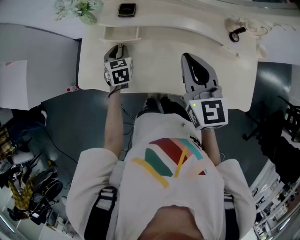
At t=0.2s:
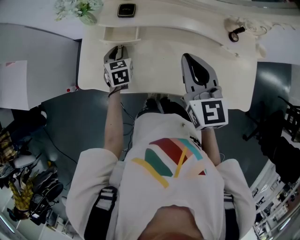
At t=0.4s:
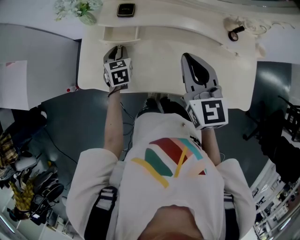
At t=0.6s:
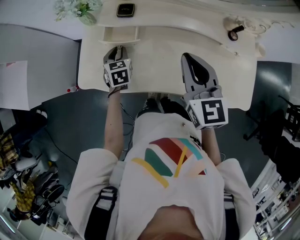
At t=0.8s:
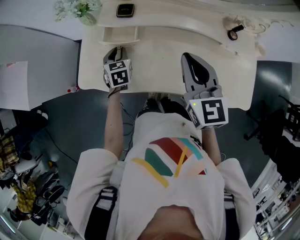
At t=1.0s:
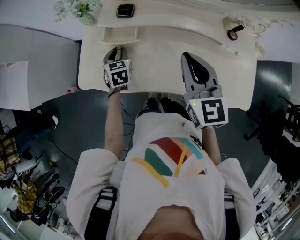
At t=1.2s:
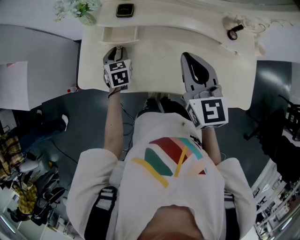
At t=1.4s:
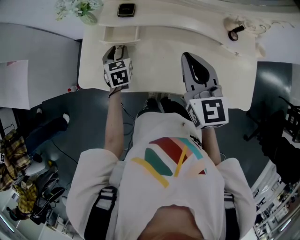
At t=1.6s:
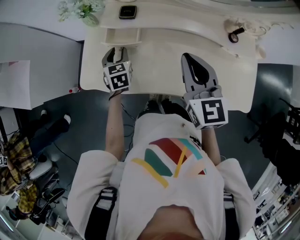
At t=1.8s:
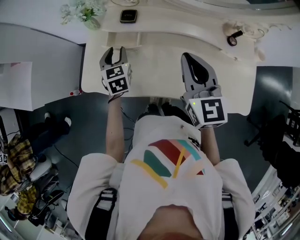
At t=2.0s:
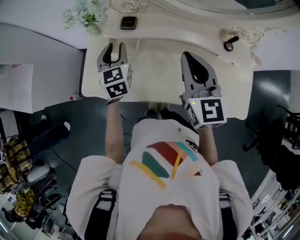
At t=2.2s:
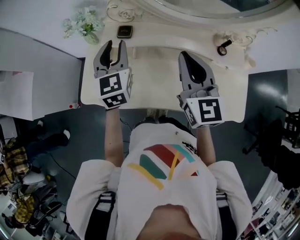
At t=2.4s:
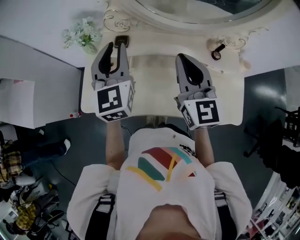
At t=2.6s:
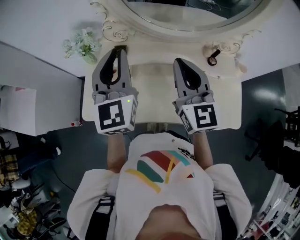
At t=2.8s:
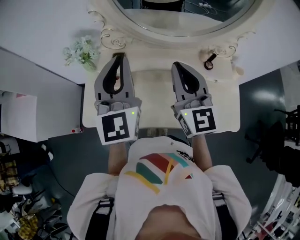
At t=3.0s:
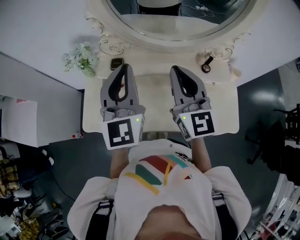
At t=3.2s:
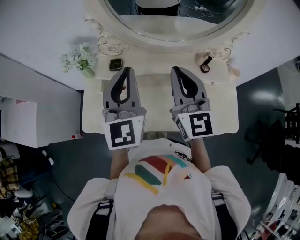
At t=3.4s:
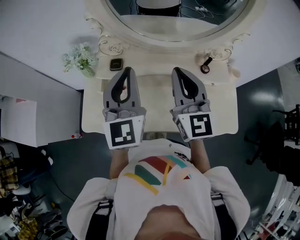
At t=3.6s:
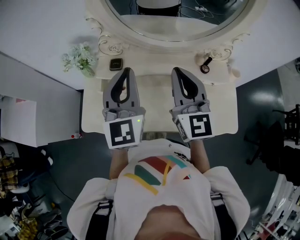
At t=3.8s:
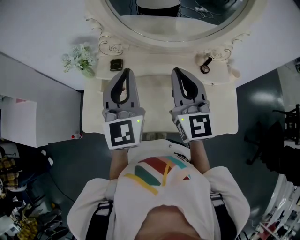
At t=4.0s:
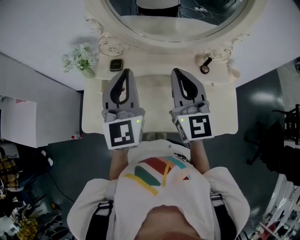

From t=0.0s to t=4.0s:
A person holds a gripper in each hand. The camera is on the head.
From t=0.0s to t=1.4s: The grippers make only small movements.
From t=1.4s to t=2.6s: The right gripper goes approximately 10 cm upward, while the left gripper goes about 35 cm upward, and points its fingers about 40 degrees further upward.
From t=2.6s to t=4.0s: The grippers stay close to where they were, moving slightly.

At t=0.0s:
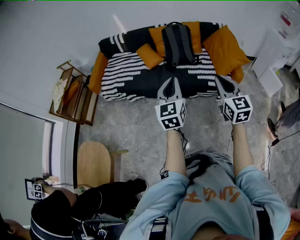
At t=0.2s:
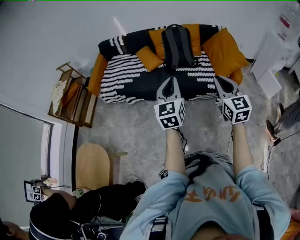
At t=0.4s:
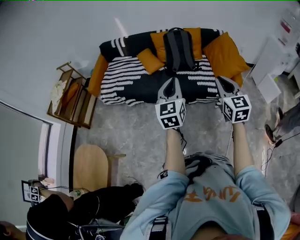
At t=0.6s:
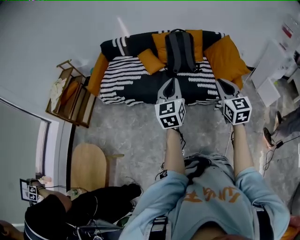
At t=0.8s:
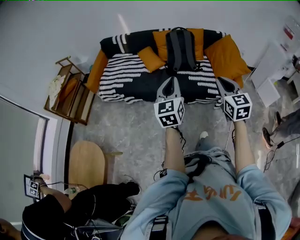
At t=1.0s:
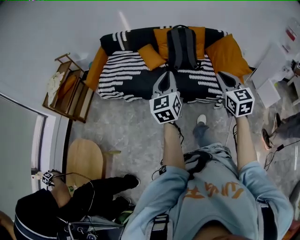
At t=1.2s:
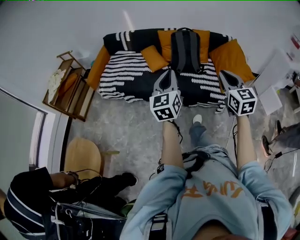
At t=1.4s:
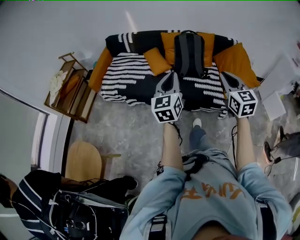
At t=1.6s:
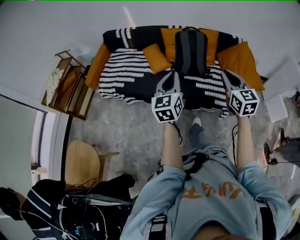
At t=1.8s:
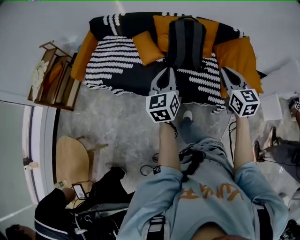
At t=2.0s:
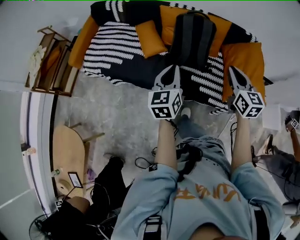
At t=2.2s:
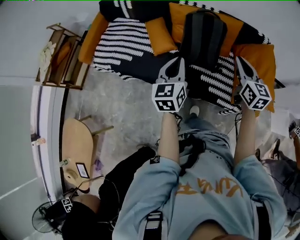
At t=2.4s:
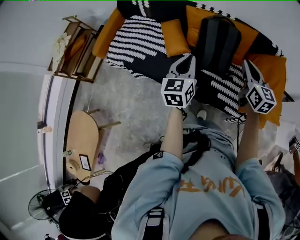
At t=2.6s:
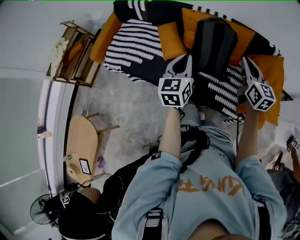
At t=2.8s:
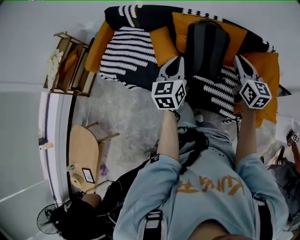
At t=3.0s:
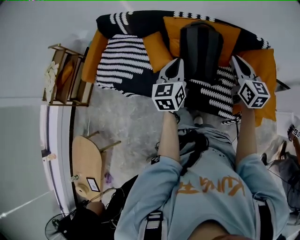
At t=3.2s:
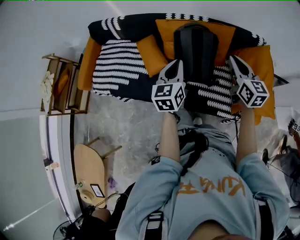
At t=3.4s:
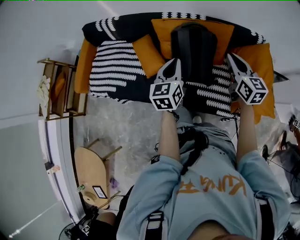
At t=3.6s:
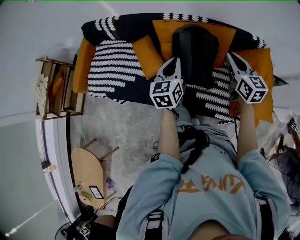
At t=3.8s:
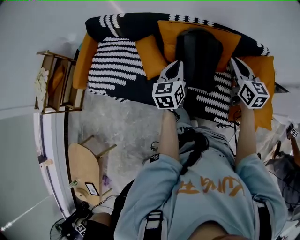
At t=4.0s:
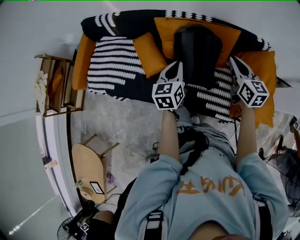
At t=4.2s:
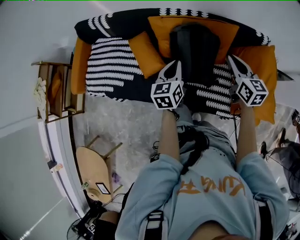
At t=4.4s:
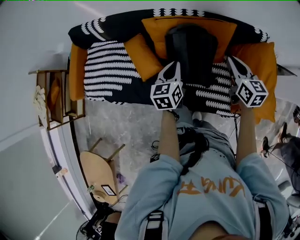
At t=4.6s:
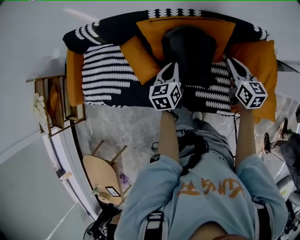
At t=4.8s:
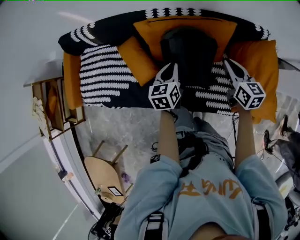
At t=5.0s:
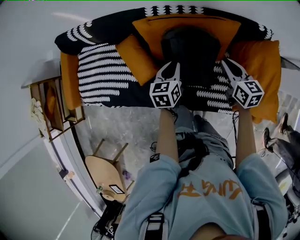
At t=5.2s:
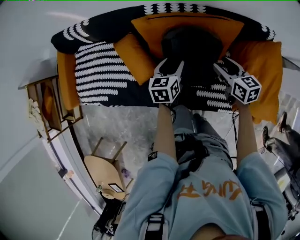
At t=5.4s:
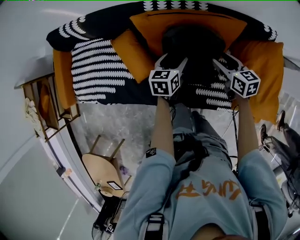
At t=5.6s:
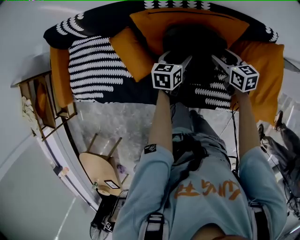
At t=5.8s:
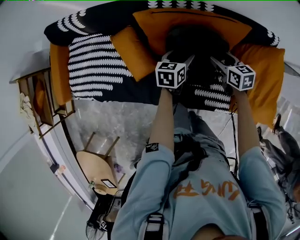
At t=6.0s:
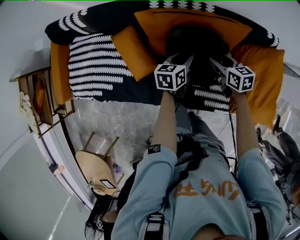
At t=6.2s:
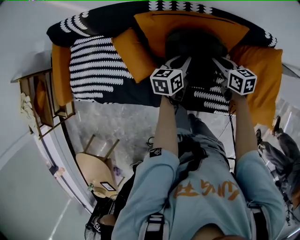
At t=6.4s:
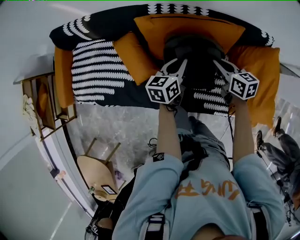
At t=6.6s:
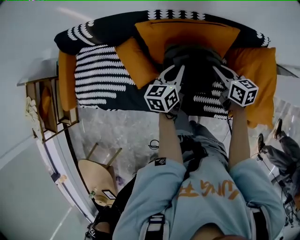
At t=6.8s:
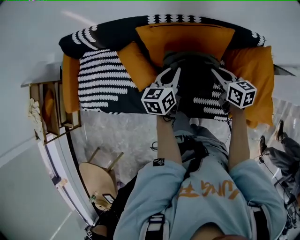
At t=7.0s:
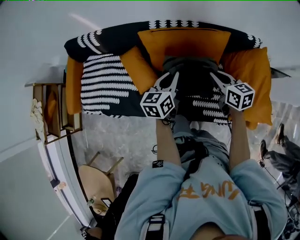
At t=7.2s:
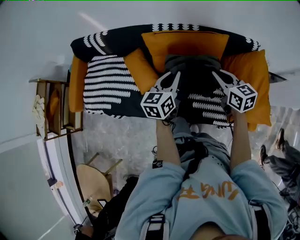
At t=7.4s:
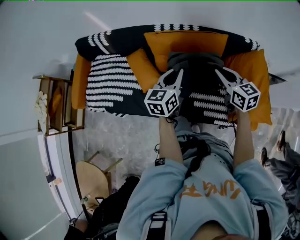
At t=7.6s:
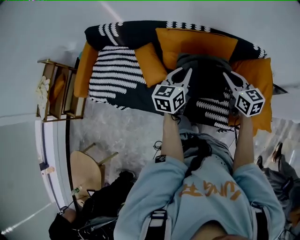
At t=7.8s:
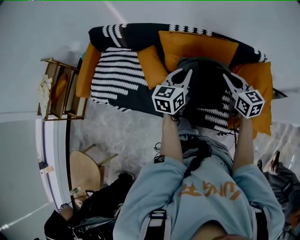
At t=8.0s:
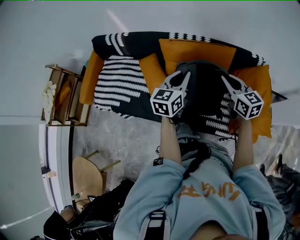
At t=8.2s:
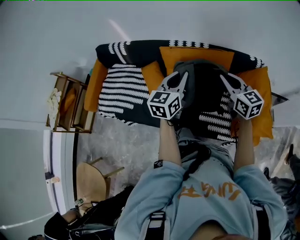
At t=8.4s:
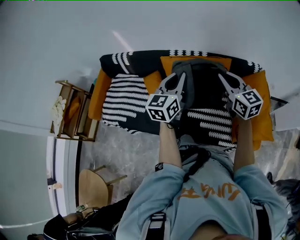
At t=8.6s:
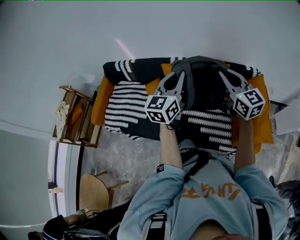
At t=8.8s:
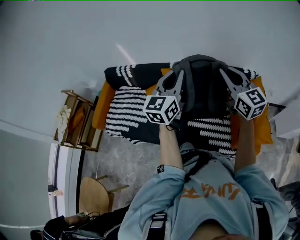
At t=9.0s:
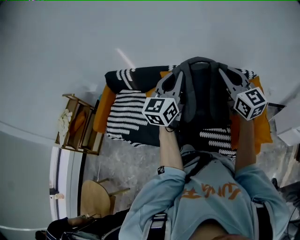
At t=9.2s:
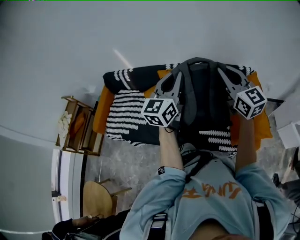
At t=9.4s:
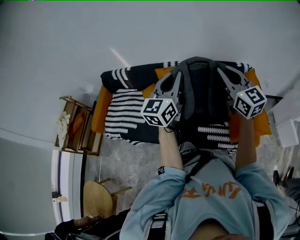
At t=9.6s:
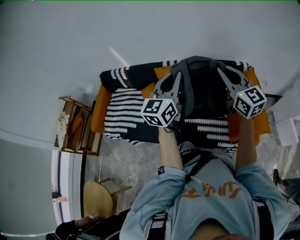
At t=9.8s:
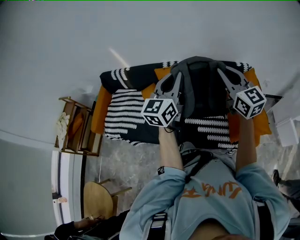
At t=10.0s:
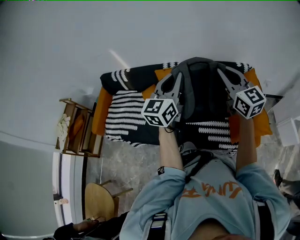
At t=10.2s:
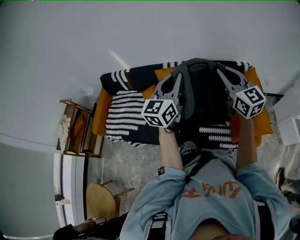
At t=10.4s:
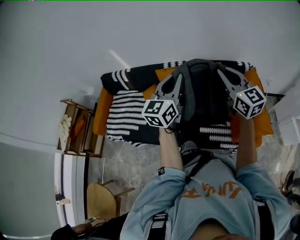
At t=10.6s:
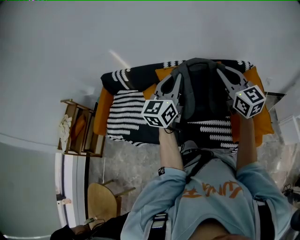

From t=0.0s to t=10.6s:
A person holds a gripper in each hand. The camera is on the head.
From t=0.0s to t=1.6s: Both grippers move forward, about 20 cm.
From t=1.6s to t=3.0s: Both grippers move forward, approximately 30 cm.
From t=3.0s to t=4.6s: The grippers both shift forward and downward by some 20 cm. The left gripper changes its angle by some 20 degrees.
From t=4.6s to t=6.0s: The left gripper shifts about 15 cm downward and forward, swivels about 20 degrees, and opens, while the right gripper heads downward, to the left and forward, covering roughly 20 cm, rotates roughly 20 degrees, and opens.
From t=6.0s to t=7.6s: Both grippers move upward and backward, roughly 25 cm. The left gripper changes its angle by some 30 degrees. The right gripper swivels about 20 degrees, and closes its fingers.
From t=7.6s to t=9.0s: The two grippers go roughly 25 cm upward. The left gripper turns by approximately 30 degrees; the right gripper turns by roughly 30 degrees.
From t=9.0s to t=10.6s: The grippers stay close to where they were, moving slightly.

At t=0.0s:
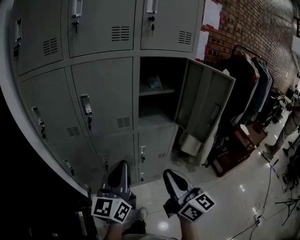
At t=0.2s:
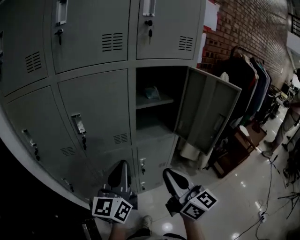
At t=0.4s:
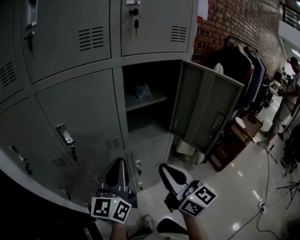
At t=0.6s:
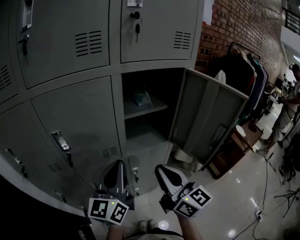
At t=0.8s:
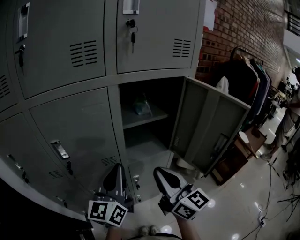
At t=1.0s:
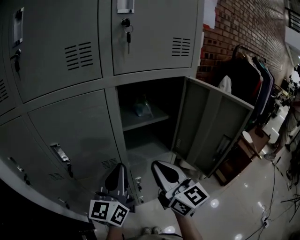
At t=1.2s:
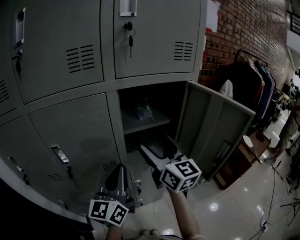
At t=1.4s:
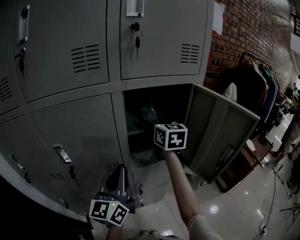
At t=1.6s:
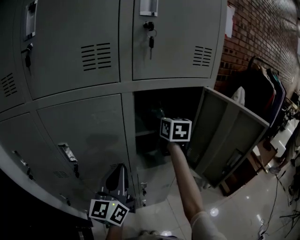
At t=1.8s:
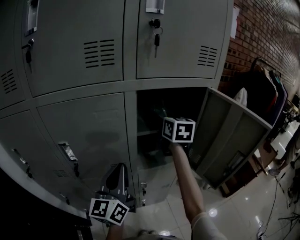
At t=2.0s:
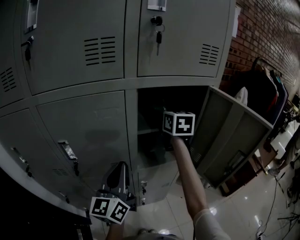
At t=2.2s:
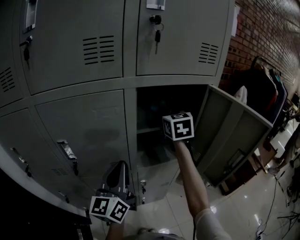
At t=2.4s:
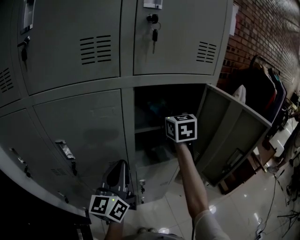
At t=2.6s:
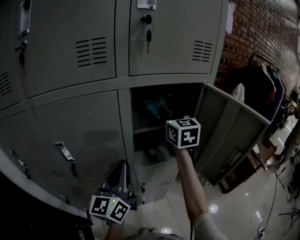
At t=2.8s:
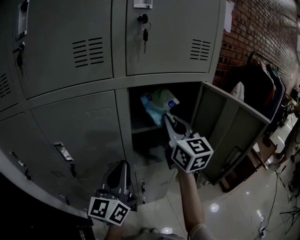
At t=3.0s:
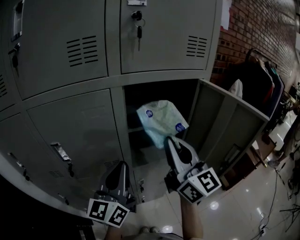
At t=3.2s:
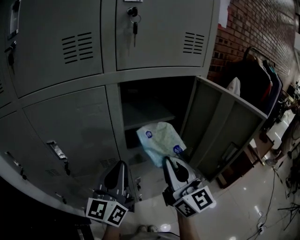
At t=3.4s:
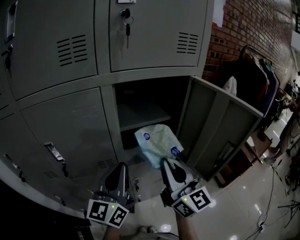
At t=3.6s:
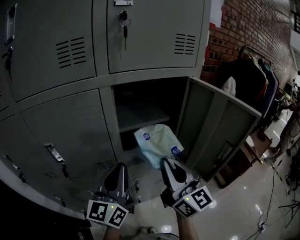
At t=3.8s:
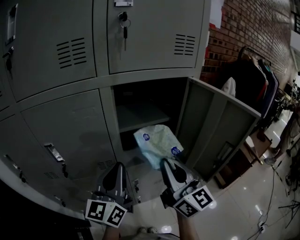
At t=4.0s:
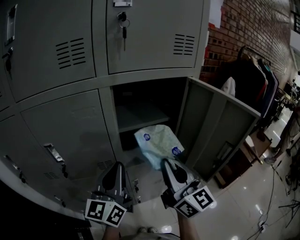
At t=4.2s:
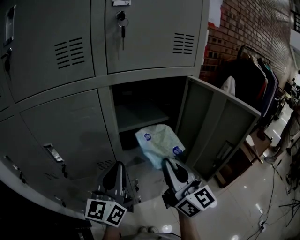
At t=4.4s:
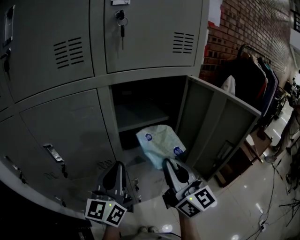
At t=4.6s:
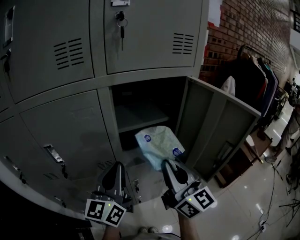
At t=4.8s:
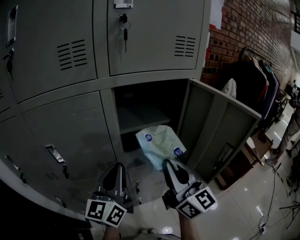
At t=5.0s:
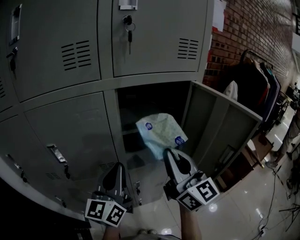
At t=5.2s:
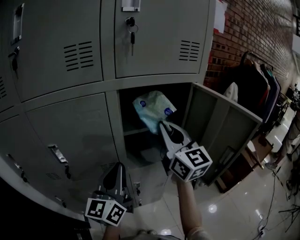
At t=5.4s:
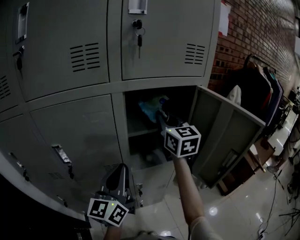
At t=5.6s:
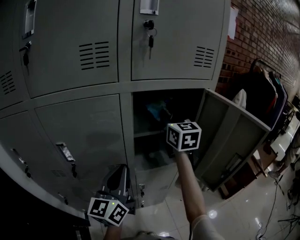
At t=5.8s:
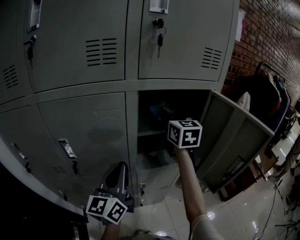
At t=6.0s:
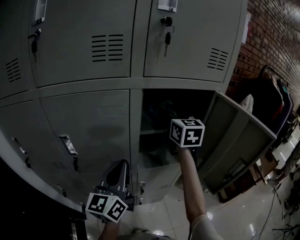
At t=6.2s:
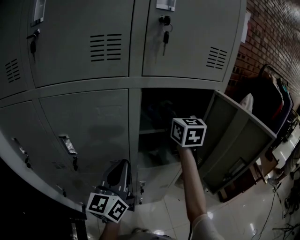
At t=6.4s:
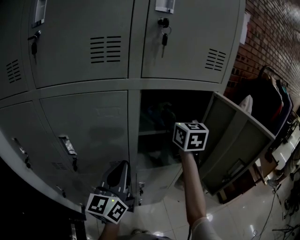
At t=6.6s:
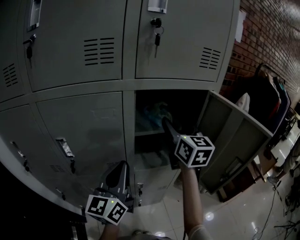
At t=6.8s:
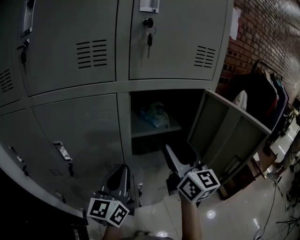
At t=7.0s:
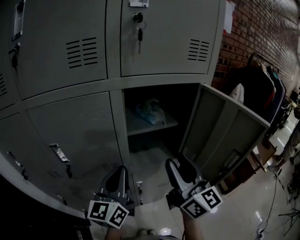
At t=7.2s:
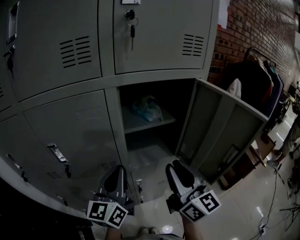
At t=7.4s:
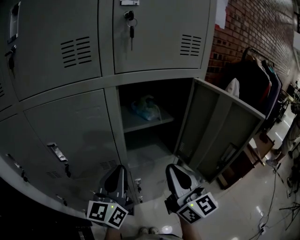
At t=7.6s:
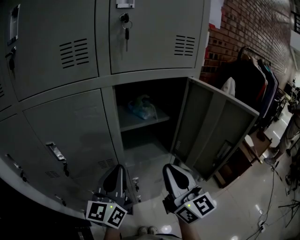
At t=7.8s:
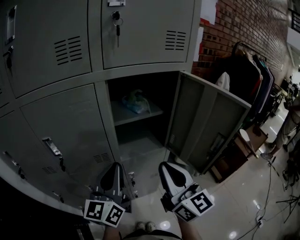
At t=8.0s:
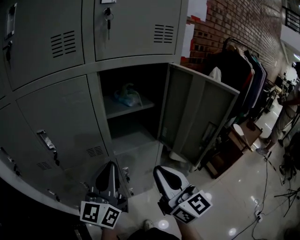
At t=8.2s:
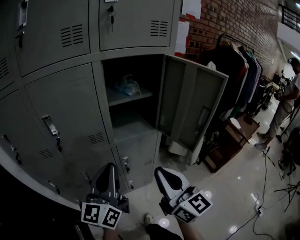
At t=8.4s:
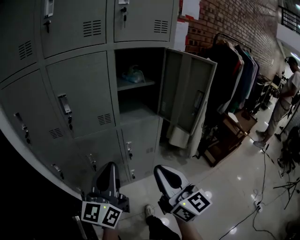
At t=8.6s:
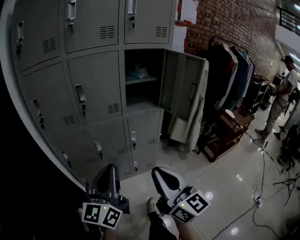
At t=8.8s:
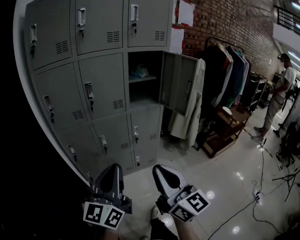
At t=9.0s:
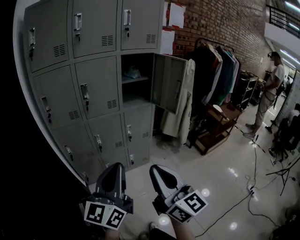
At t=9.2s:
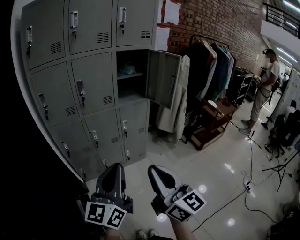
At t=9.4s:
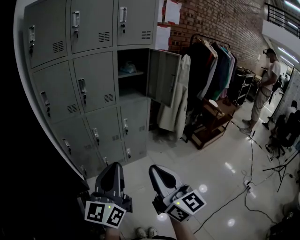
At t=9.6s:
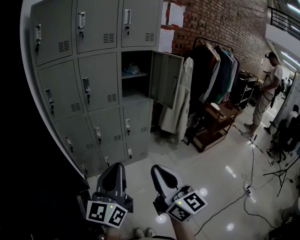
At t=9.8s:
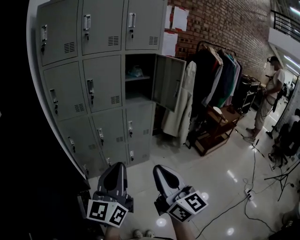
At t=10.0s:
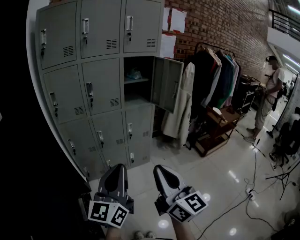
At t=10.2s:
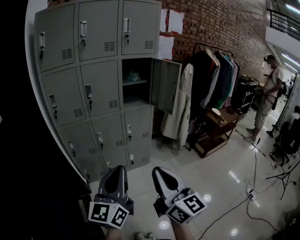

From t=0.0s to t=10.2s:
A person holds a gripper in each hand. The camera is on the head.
From t=0.0s to t=1.4s: The right gripper heads forward, covering approximately 50 cm, rotates some 30 degrees, and opens up. Meanwhile the left gripper goes some 25 cm forward.
From t=1.4s to t=3.0s: The right gripper shifts roughly 15 cm backward, swivels about 30 degrees, and closes up.
From t=3.0s to t=4.4s: The right gripper heads downward, covering about 5 cm.
From t=4.4s to t=5.8s: The right gripper moves forward, about 25 cm, and changes its angle by some 30 degrees.
From t=5.8s to t=7.2s: The right gripper goes roughly 25 cm backward, and changes its angle by roughly 30 degrees.
From t=7.2s to t=8.8s: Both grippers are carried backward, about 50 cm.
From t=8.8s to t=10.2s: The two grippers go some 10 cm backward.
